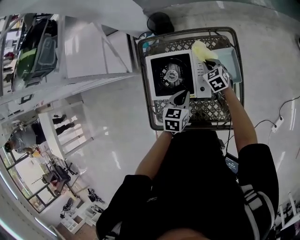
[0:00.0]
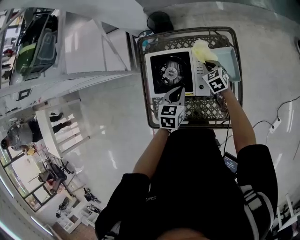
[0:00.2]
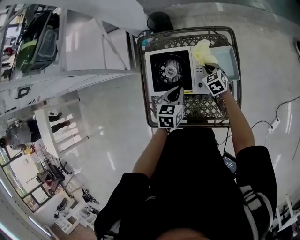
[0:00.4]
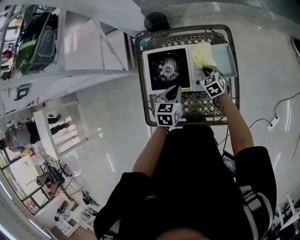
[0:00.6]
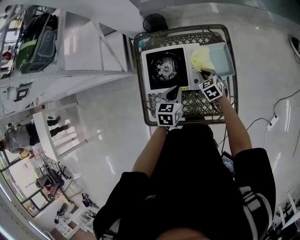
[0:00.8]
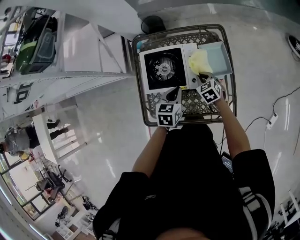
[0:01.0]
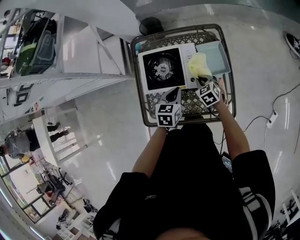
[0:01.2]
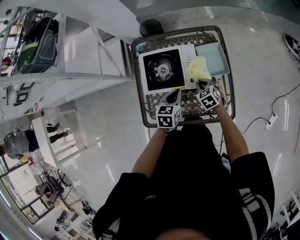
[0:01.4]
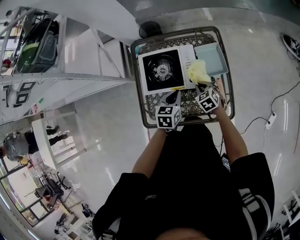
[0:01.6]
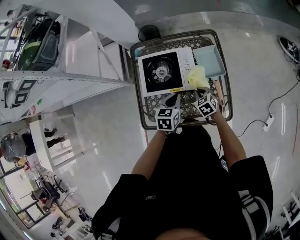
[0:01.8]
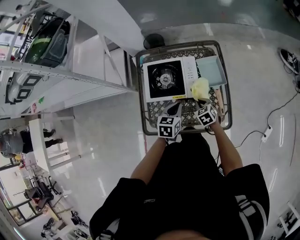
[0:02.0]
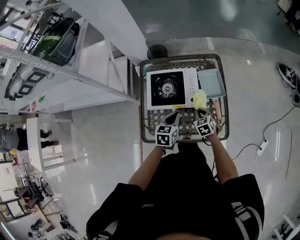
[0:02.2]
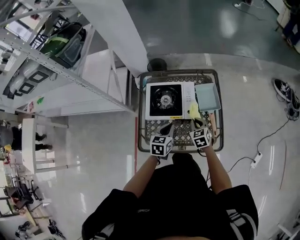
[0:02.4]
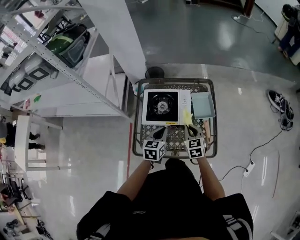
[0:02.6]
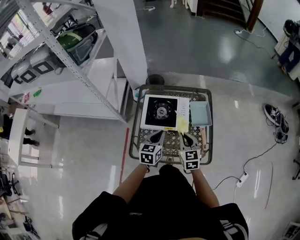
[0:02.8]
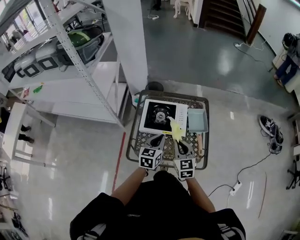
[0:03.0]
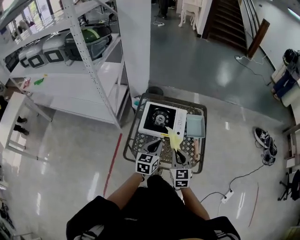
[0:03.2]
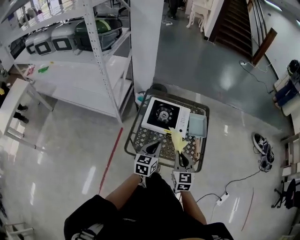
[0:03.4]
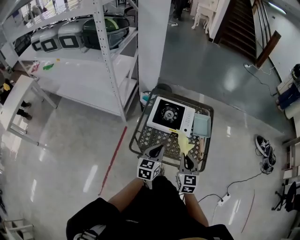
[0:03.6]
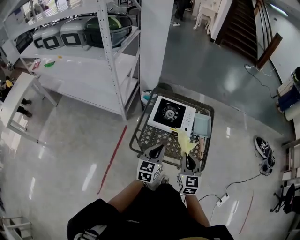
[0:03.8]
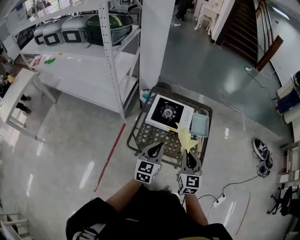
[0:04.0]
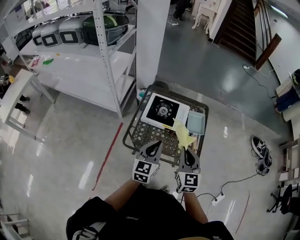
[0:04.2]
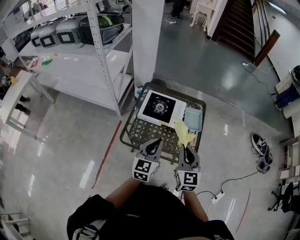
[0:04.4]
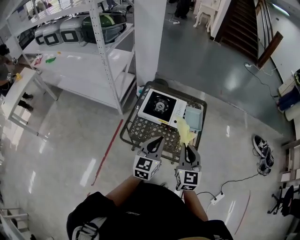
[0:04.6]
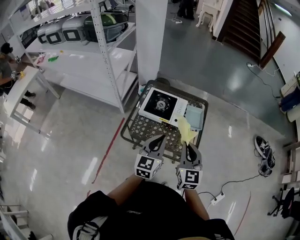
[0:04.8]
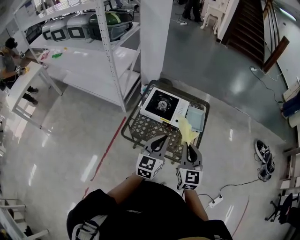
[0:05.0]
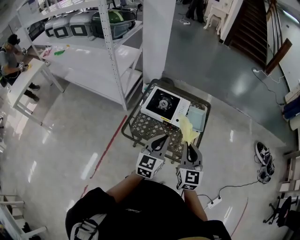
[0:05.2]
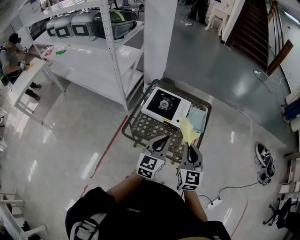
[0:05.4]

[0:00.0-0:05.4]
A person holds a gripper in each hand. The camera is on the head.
0:00.0 to 0:01.4: The right gripper heads backward, covering approximately 15 cm. Meanwhile the left gripper moves backward, roughly 5 cm.
0:01.4 to 0:02.8: The left gripper shifts approximately 15 cm upward, backward and to the left; the right gripper travels upward and backward by roughly 20 cm, and rotates about 30 degrees.
0:02.8 to 0:04.0: The grippers both shift backward and upward by about 20 cm.
0:04.0 to 0:05.4: The right gripper is displaced to the right by about 10 cm; the left gripper travels to the right and upward by approximately 15 cm.

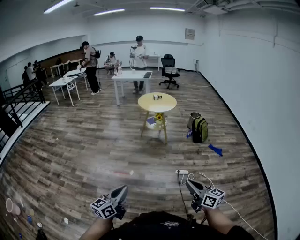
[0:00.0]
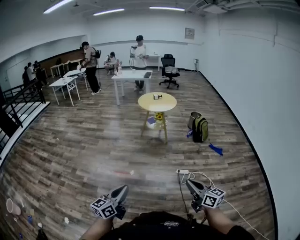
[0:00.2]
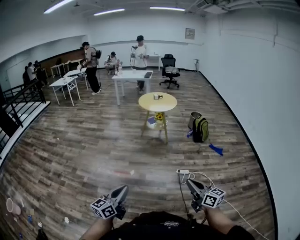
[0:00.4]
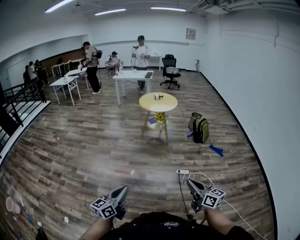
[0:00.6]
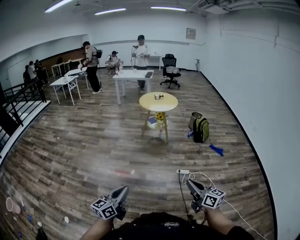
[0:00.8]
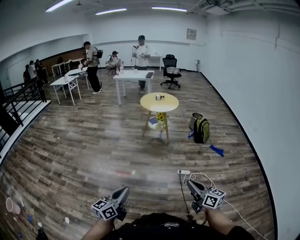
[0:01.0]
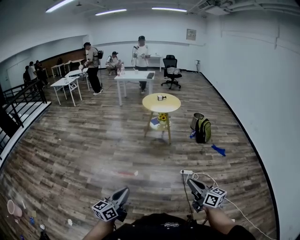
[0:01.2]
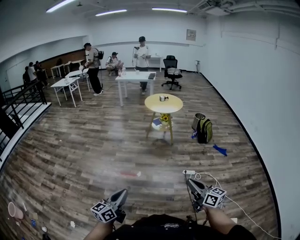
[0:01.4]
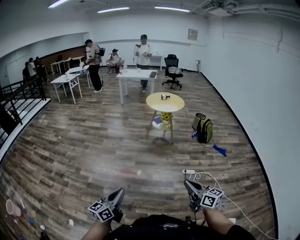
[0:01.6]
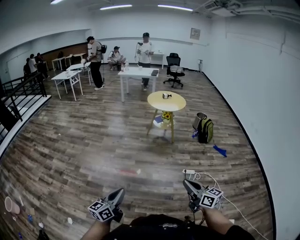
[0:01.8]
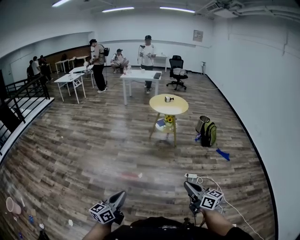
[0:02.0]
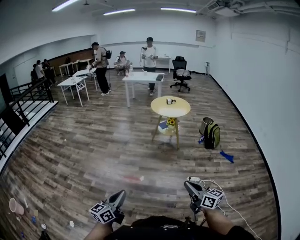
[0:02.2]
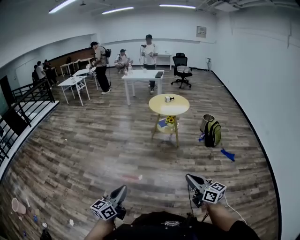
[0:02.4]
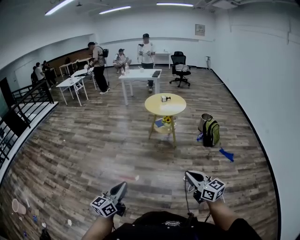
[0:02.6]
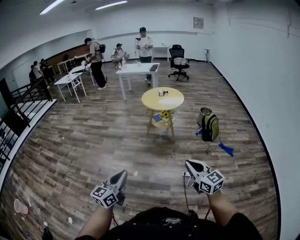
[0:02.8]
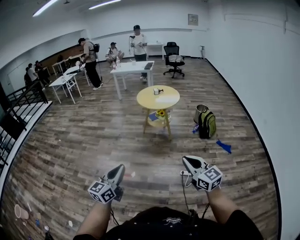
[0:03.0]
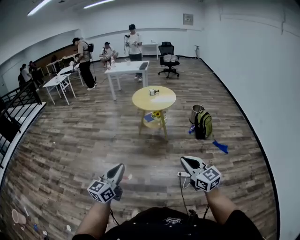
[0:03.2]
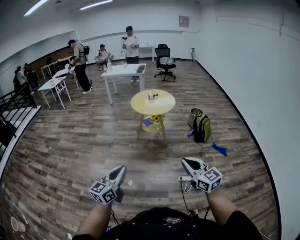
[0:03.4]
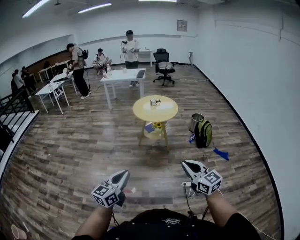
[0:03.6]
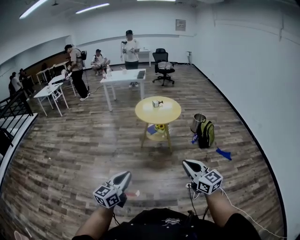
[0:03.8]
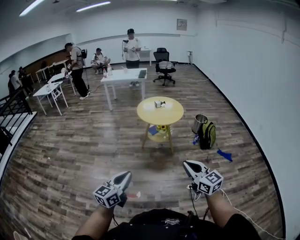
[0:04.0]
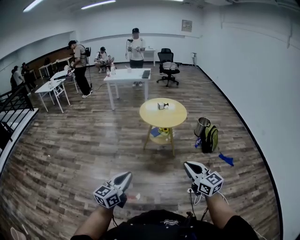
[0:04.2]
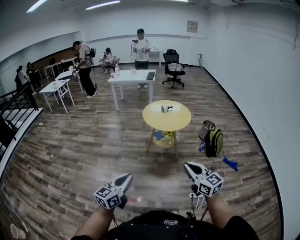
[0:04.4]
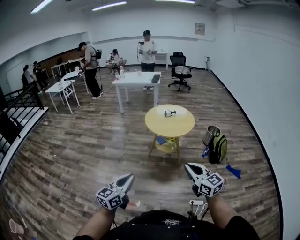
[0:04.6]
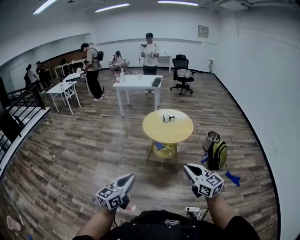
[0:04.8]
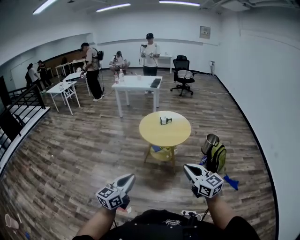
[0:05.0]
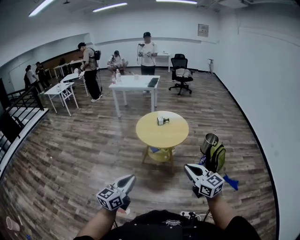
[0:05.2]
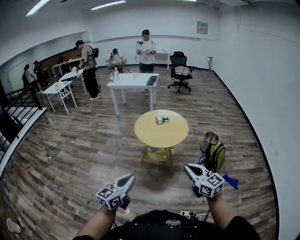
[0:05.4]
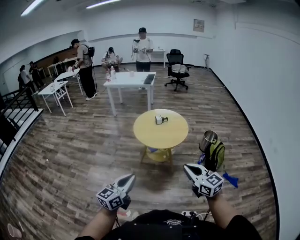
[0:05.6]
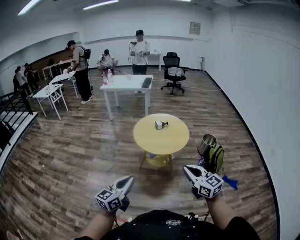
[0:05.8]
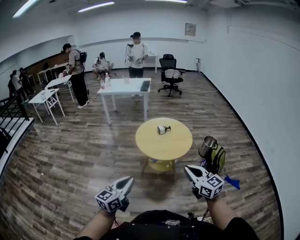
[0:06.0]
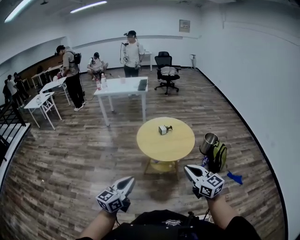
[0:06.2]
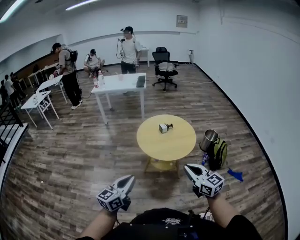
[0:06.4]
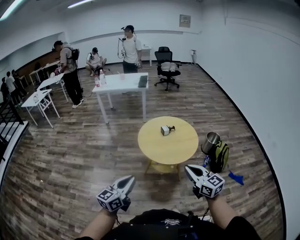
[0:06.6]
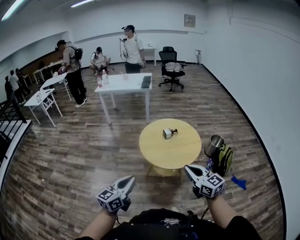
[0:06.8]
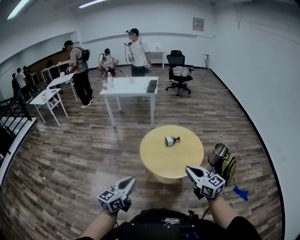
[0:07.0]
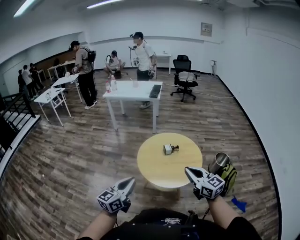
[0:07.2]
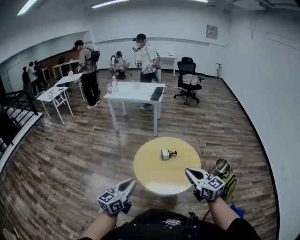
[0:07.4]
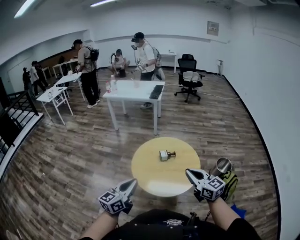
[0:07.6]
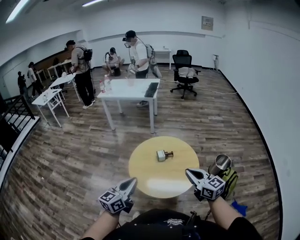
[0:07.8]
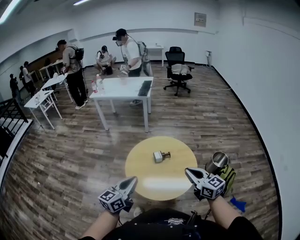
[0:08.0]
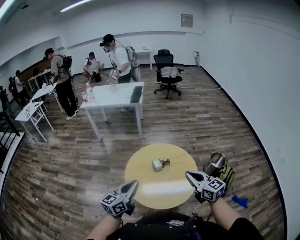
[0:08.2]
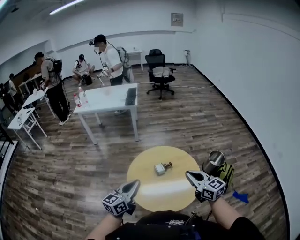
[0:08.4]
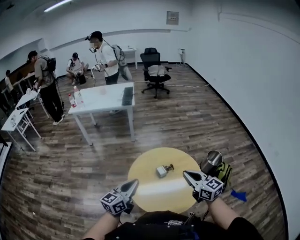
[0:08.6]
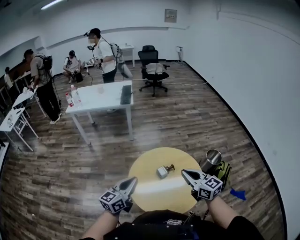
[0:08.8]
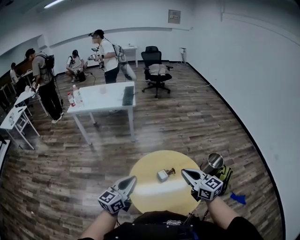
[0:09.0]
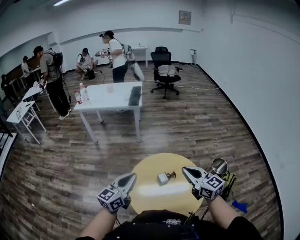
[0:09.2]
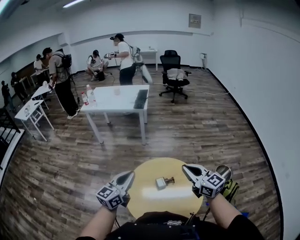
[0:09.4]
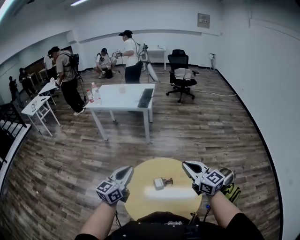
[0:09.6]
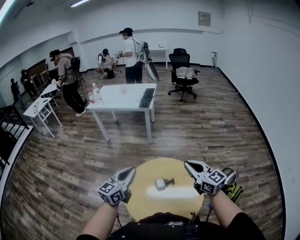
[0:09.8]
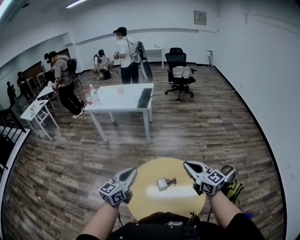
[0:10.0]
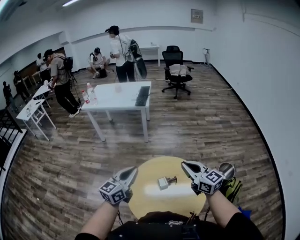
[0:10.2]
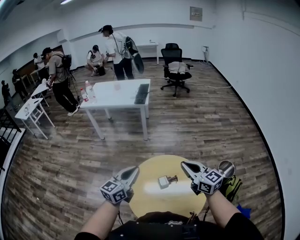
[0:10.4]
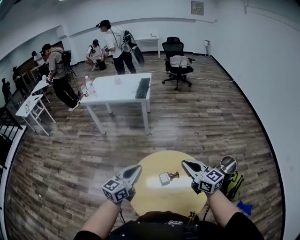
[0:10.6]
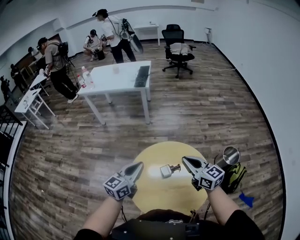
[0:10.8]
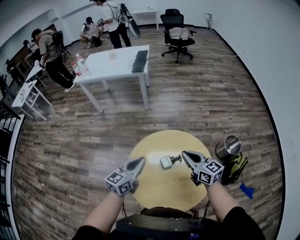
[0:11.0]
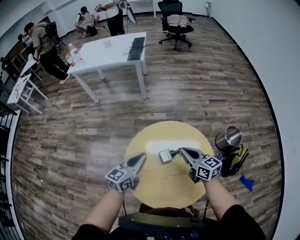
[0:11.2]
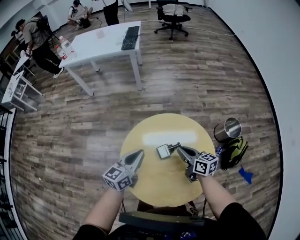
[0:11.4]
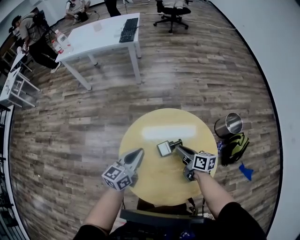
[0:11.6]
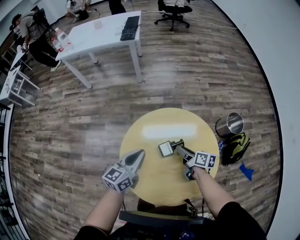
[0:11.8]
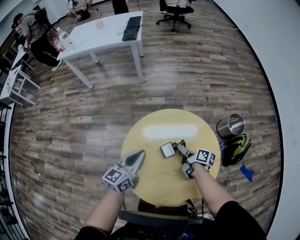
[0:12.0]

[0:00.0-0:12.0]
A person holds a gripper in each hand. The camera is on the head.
0:00.0 to 0:01.6: Both grippers travel together to the left, about 15 cm.
0:01.6 to 0:03.0: The right gripper shifts approximately 35 cm forward and to the right, and turns by some 20 degrees. Meanwhile the left gripper travels to the right and forward by roughly 40 cm.
0:03.0 to 0:04.4: Both grippers travel together forward and to the left, approximately 40 cm.
0:04.4 to 0:06.0: The two grippers go roughly 40 cm forward.
0:06.0 to 0:07.6: The pair of grippers is taken forward, approximately 40 cm.
0:07.6 to 0:09.0: The left gripper is displaced forward by about 35 cm; the right gripper heads forward and to the left, covering about 30 cm.
0:09.0 to 0:10.4: Both grippers travel together forward and to the right, approximately 10 cm.
0:10.4 to 0:12.0: The right gripper goes approximately 40 cm downward, twists about 70 degrees clockwise, seen from behind, and opens its fingers; the left gripper goes some 25 cm downward.

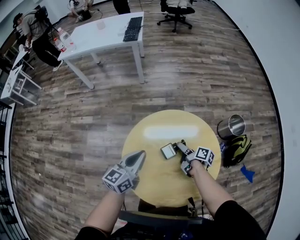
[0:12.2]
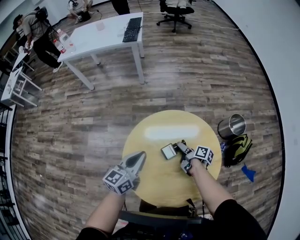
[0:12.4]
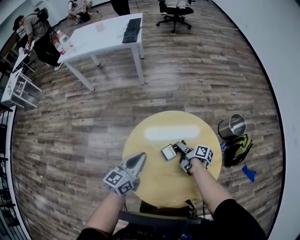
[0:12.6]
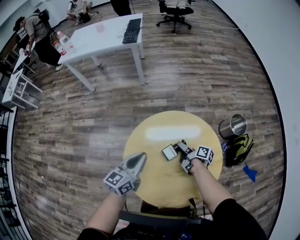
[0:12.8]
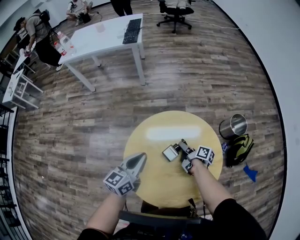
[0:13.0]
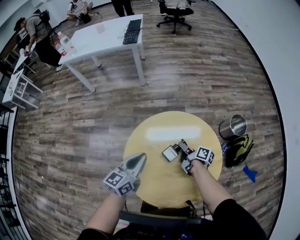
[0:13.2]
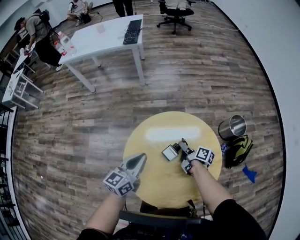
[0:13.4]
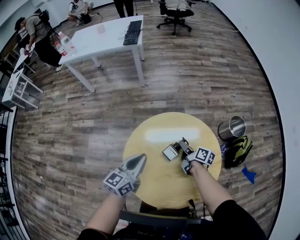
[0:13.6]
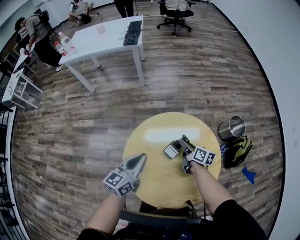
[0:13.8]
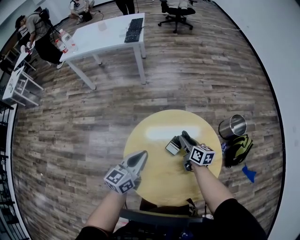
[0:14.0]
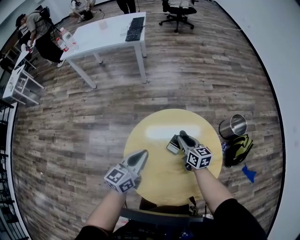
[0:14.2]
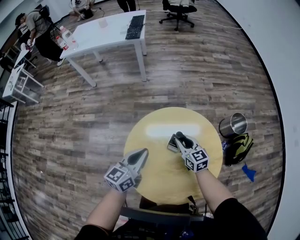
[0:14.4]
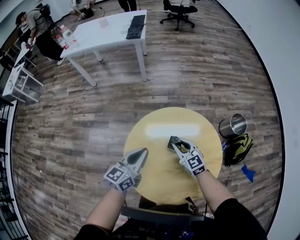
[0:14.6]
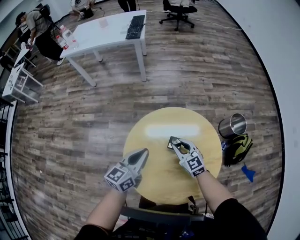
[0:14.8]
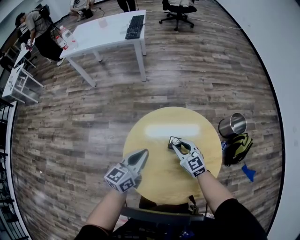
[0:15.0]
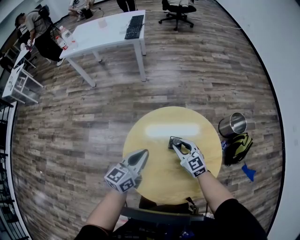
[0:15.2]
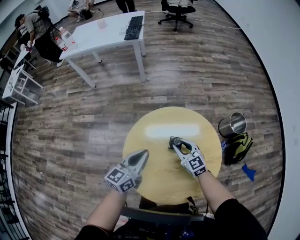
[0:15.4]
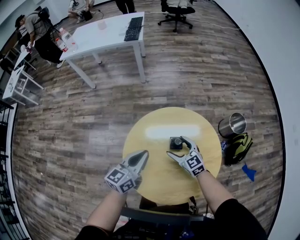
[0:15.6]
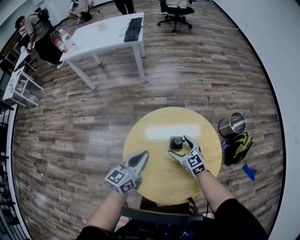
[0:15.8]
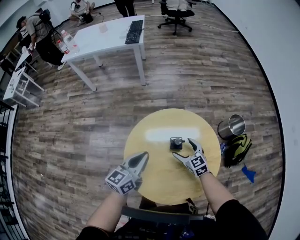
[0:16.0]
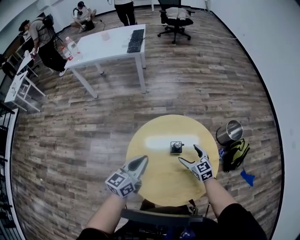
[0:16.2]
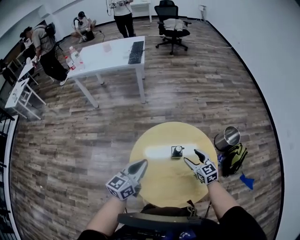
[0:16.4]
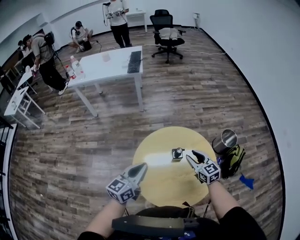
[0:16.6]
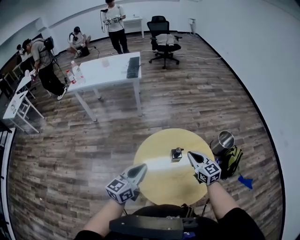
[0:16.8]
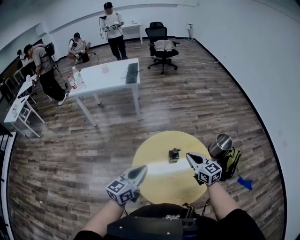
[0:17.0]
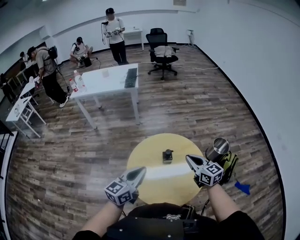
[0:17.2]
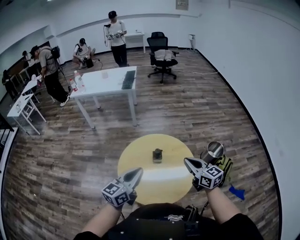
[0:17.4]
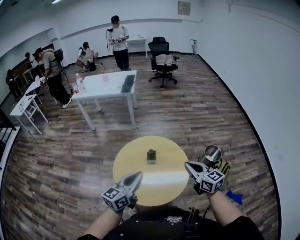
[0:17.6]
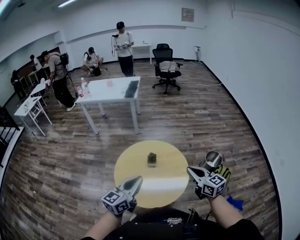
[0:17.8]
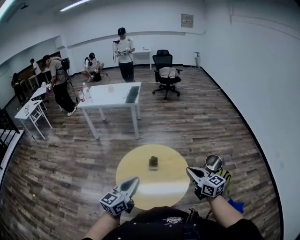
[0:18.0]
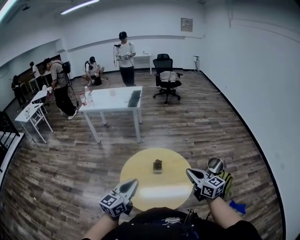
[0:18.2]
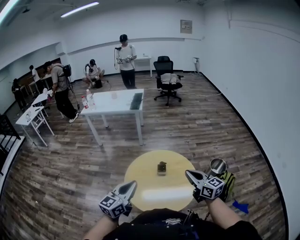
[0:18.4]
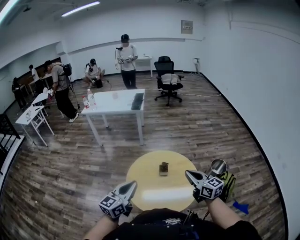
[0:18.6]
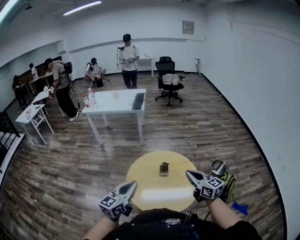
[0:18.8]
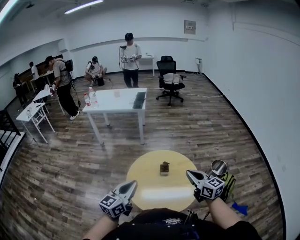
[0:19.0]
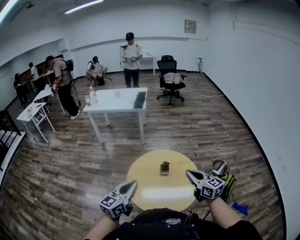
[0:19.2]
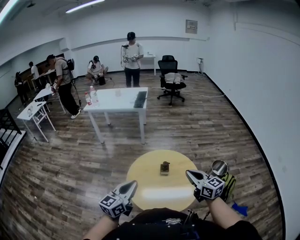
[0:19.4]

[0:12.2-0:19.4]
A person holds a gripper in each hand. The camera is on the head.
0:12.2 to 0:13.6: The right gripper closes up.
0:13.6 to 0:15.0: The right gripper moves to the left and upward, roughly 10 cm, and twists some 70 degrees counterclockwise, seen from behind.
0:15.0 to 0:16.6: The right gripper moves upward and backward, about 15 cm, and opens and closes again, while the left gripper shifts approximately 15 cm upward, backward and to the left.
0:16.6 to 0:18.0: The left gripper travels backward, to the right and upward by about 30 cm; the right gripper goes roughly 35 cm backward, upward and to the right, and closes up.
0:18.0 to 0:19.4: Both grippers travel together to the left, some 10 cm.
